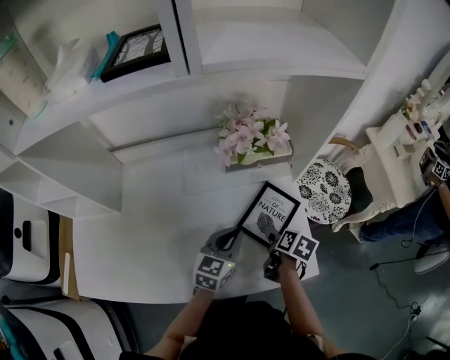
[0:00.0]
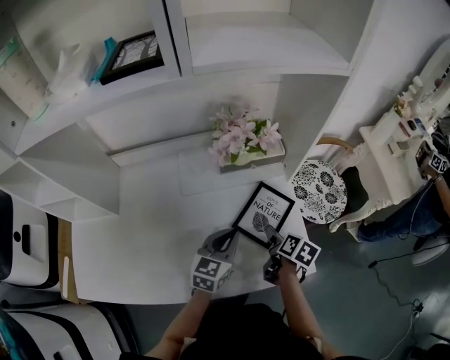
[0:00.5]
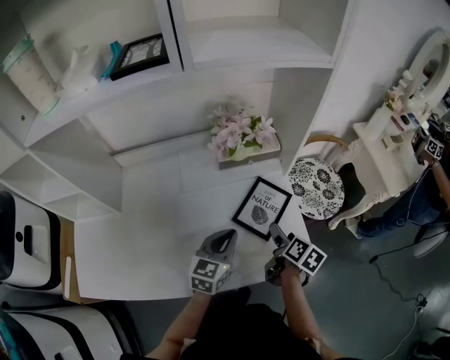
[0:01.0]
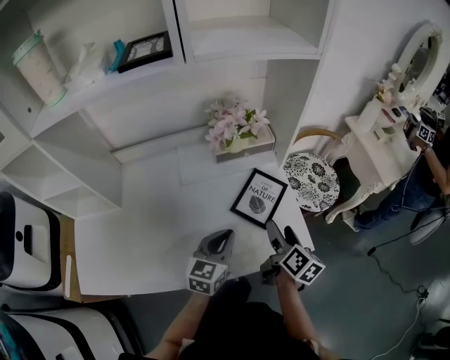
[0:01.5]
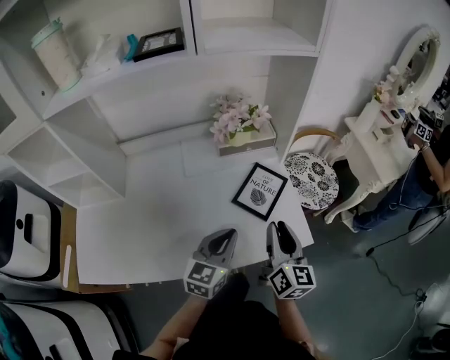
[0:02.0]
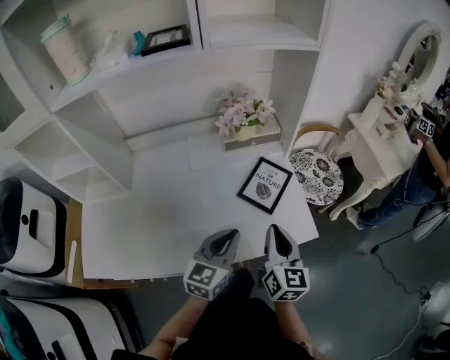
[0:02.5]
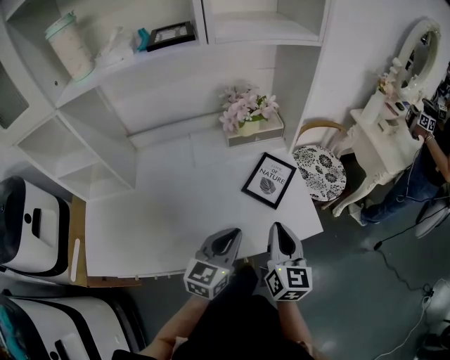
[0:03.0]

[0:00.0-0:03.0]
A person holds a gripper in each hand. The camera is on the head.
0:00.0 to 0:01.5: The left gripper shifts about 10 cm backward, while the right gripper moves upward and backward, about 15 cm, and tips its fingers upward by roughly 30 degrees.
0:01.5 to 0:03.0: The right gripper is displaced backward and upward by approximately 10 cm, turns by approximately 40 degrees, and closes its fingers. The left gripper is displaced backward by approximately 10 cm.

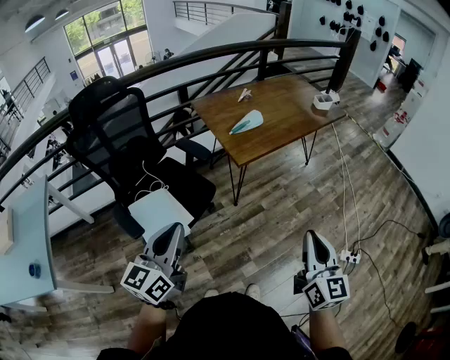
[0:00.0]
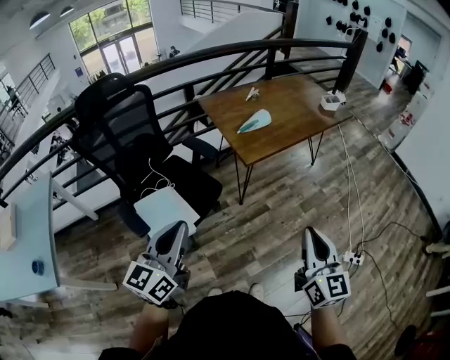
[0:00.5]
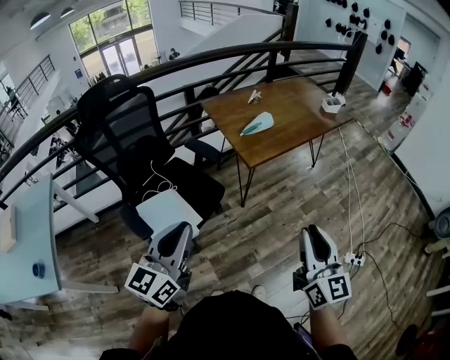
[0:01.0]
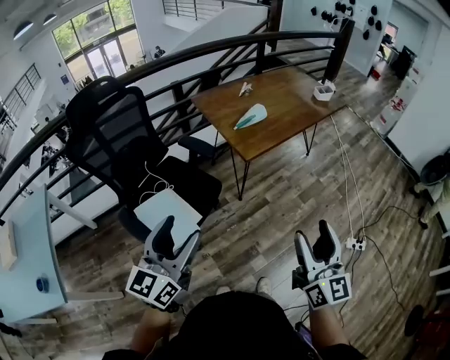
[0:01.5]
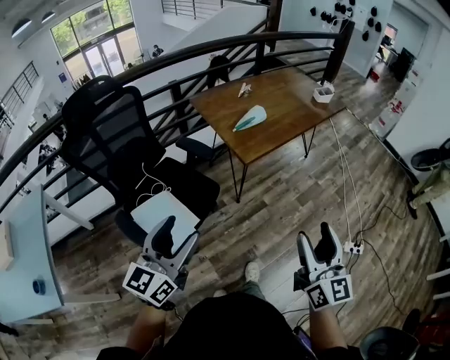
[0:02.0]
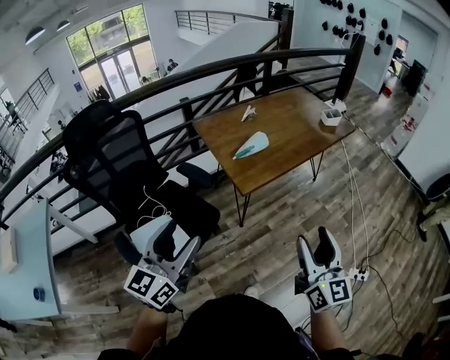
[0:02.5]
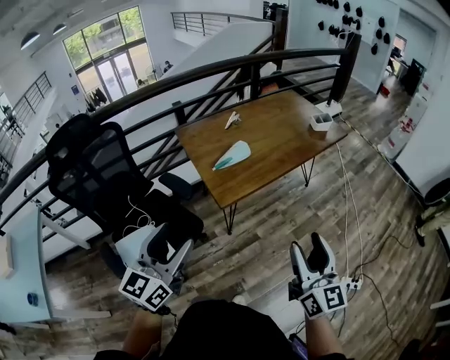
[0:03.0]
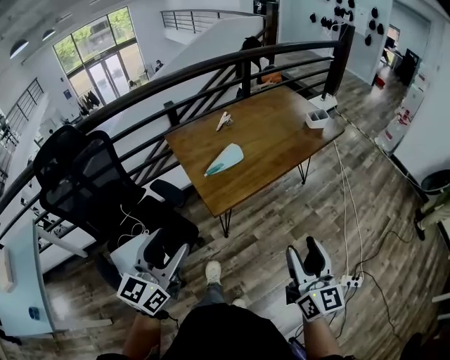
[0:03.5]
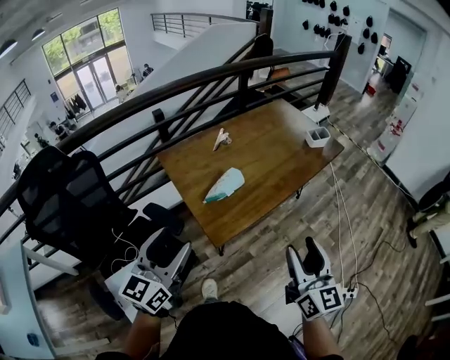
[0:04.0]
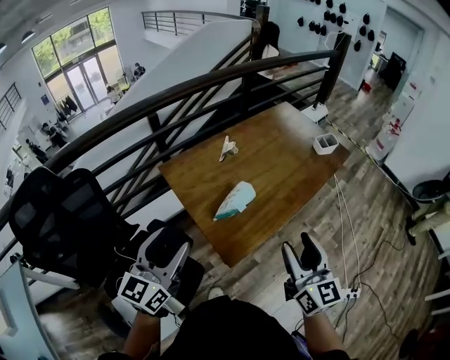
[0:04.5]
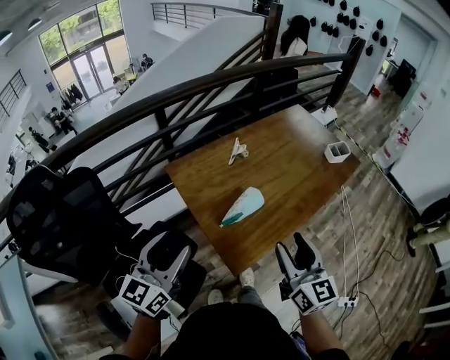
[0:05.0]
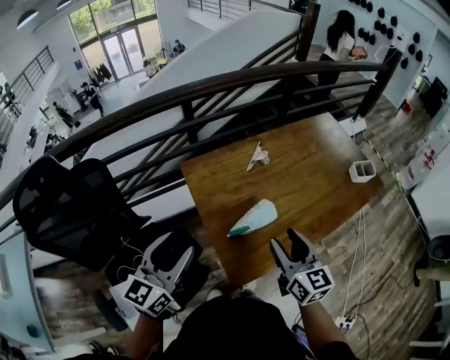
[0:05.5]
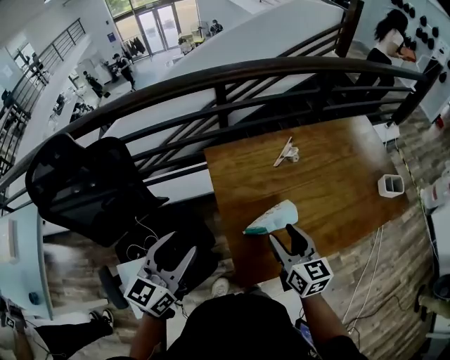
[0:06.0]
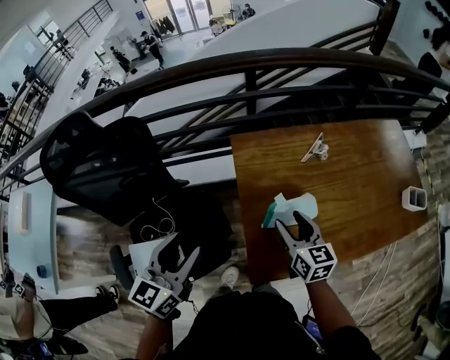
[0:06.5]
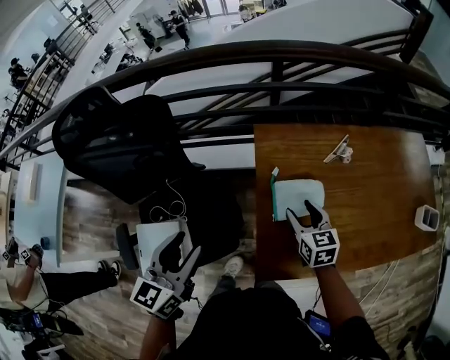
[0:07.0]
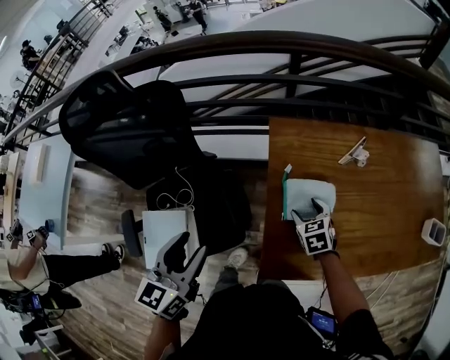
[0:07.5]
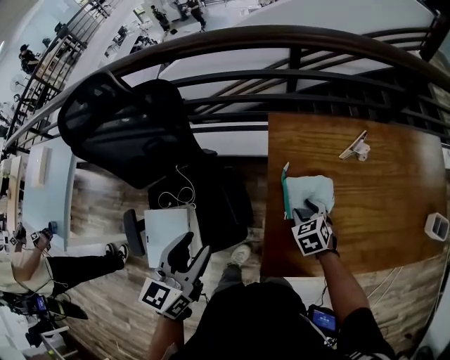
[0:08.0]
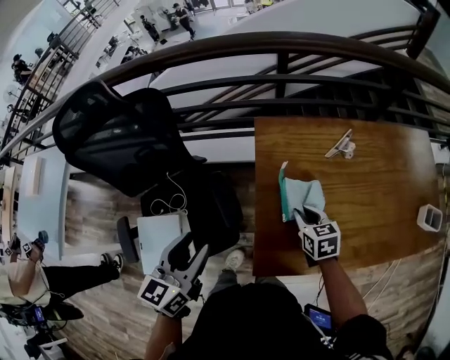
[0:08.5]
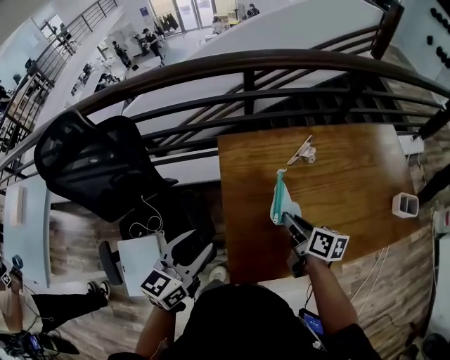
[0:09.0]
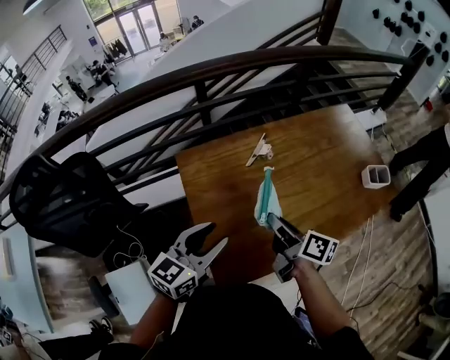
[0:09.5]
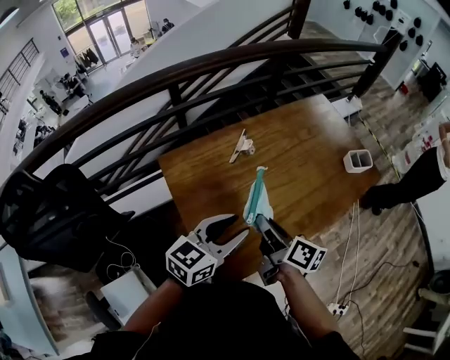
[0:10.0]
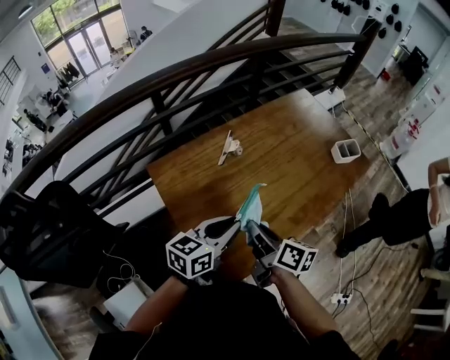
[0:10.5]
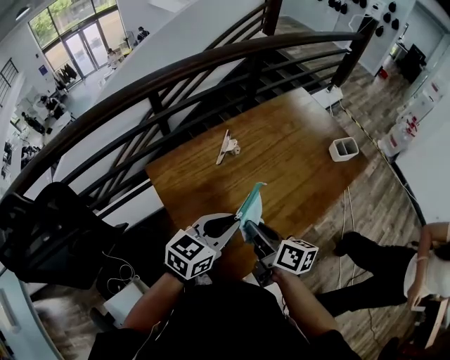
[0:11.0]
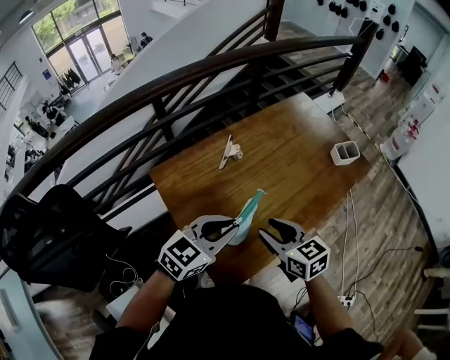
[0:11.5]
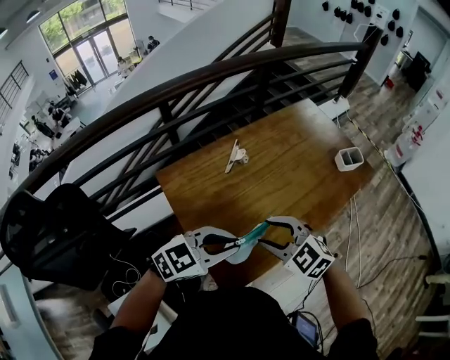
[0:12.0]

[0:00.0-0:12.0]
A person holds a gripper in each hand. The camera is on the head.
0:00.0 to 0:02.0: The left gripper opens, while the right gripper shifts some 5 cm to the left, and opens its fingers.
0:02.0 to 0:04.0: Both grippers travel together forward, about 30 cm.
0:04.0 to 0:06.0: The left gripper heads forward and to the left, covering about 20 cm, while the right gripper travels forward, to the left and downward by about 35 cm, and swivels about 40 degrees.
0:06.0 to 0:08.0: The left gripper shifts approximately 5 cm to the left, and changes its angle by roughly 30 degrees. The right gripper heads downward and forward, covering approximately 20 cm, and tips its fingers downward by some 40 degrees.
0:08.0 to 0:10.0: The right gripper goes about 20 cm upward, twists about 80 degrees clockwise, seen from behind, and closes up. Meanwhile the left gripper ends up approximately 30 cm from where it was, and swivels roughly 60 degrees.
0:10.0 to 0:12.0: The right gripper twists some 80 degrees counterclockwise, seen from behind, and opens its fingers; the left gripper rotates about 40 degrees, and closes.

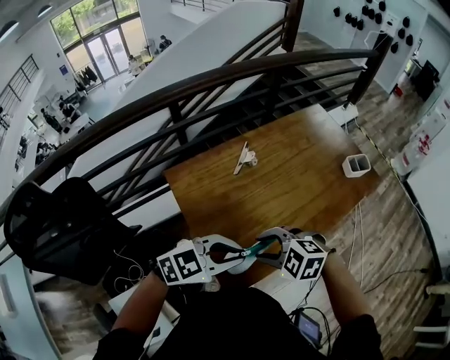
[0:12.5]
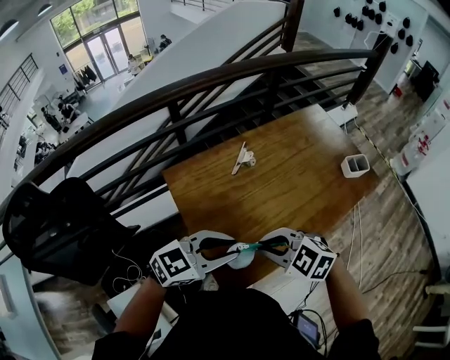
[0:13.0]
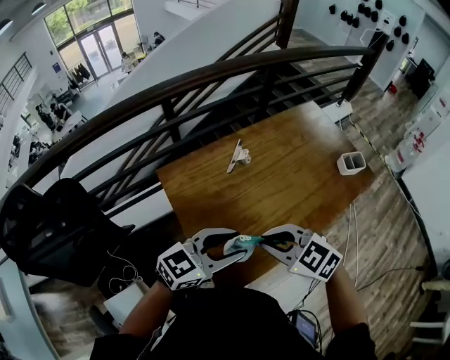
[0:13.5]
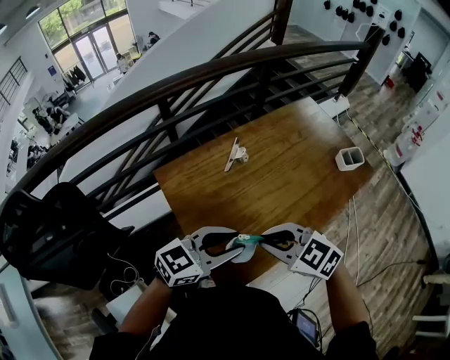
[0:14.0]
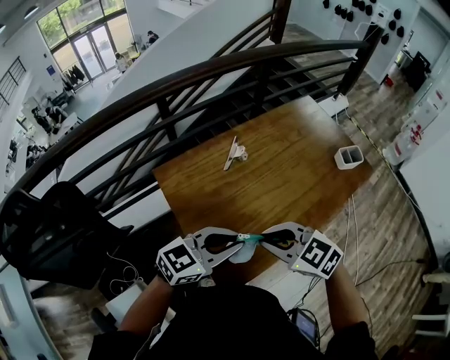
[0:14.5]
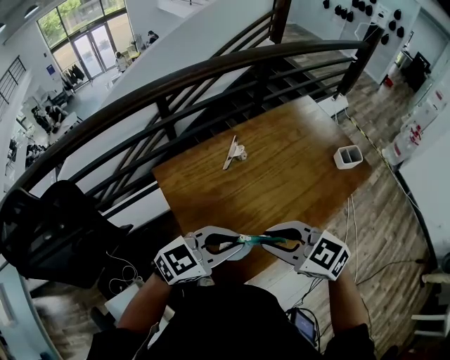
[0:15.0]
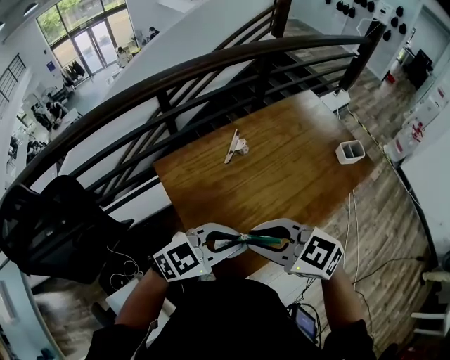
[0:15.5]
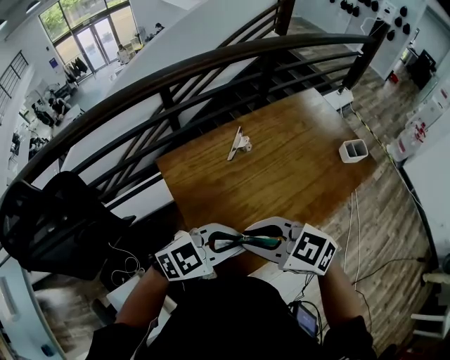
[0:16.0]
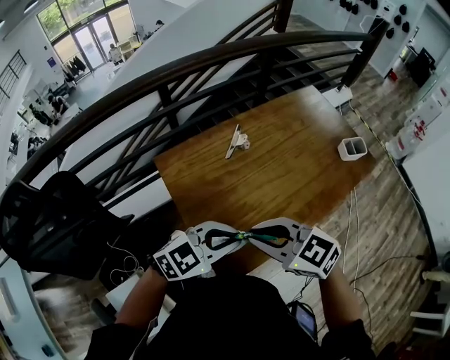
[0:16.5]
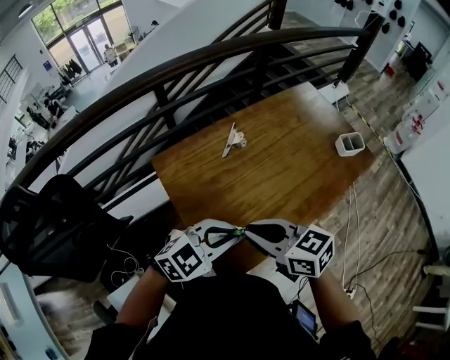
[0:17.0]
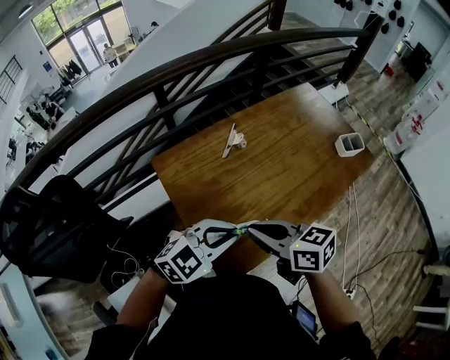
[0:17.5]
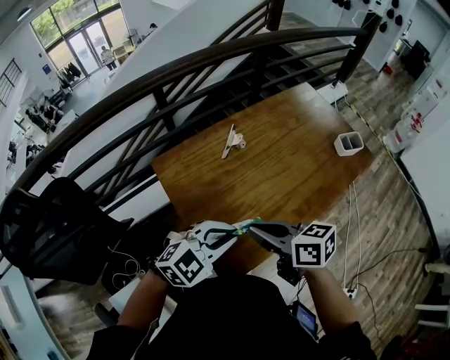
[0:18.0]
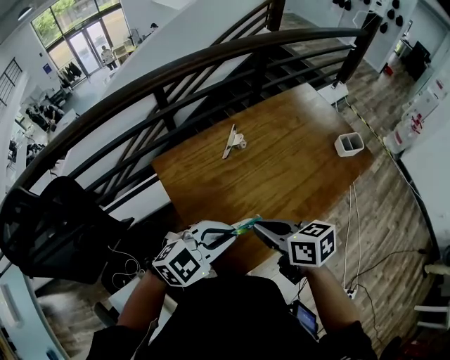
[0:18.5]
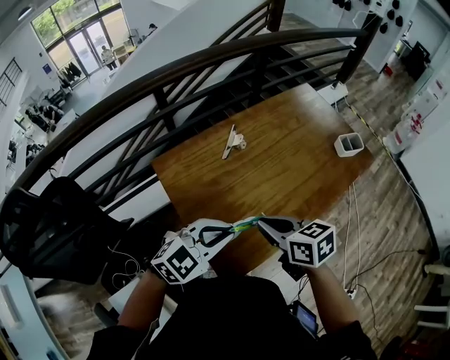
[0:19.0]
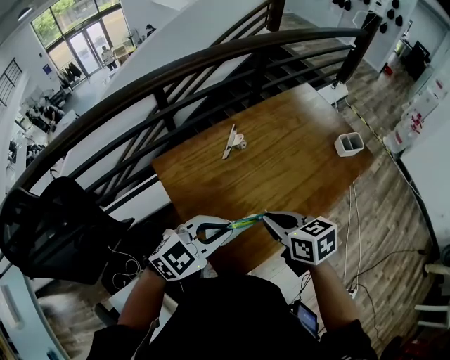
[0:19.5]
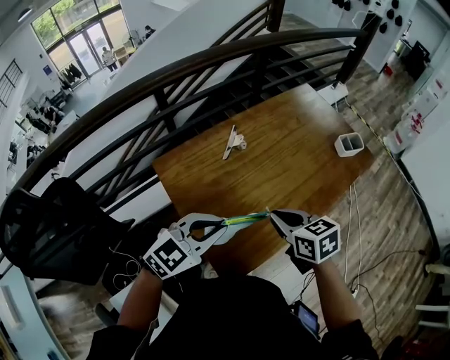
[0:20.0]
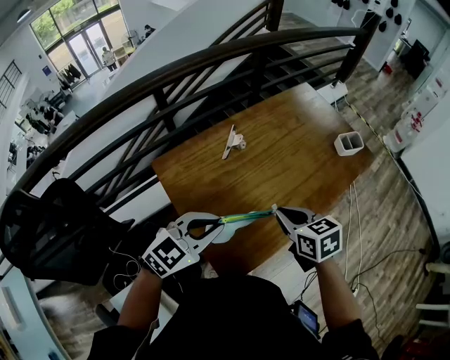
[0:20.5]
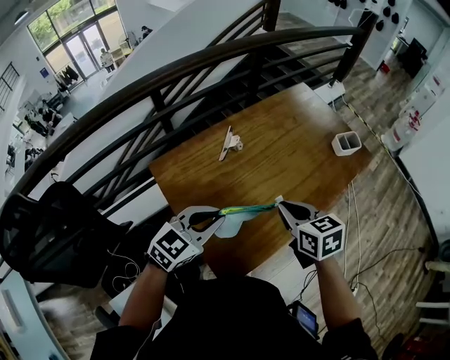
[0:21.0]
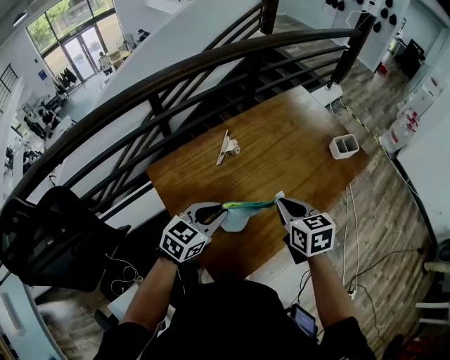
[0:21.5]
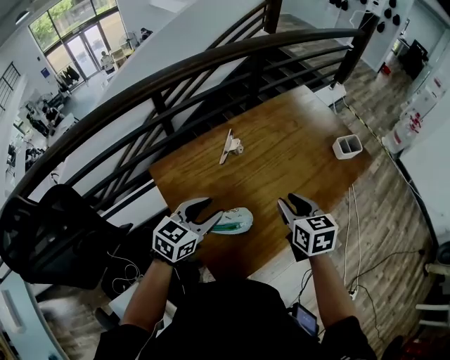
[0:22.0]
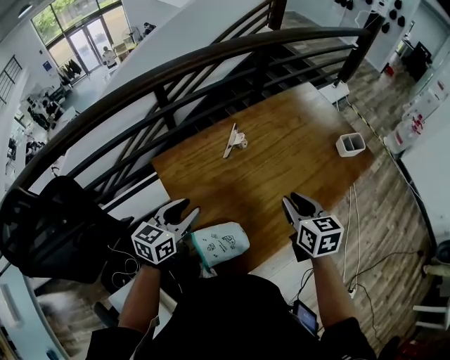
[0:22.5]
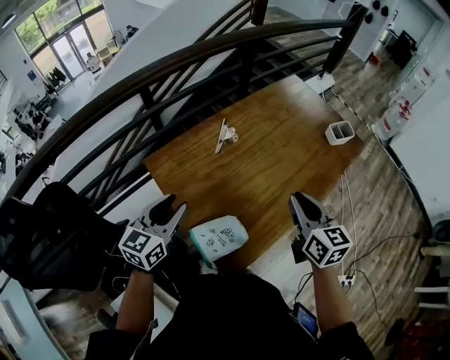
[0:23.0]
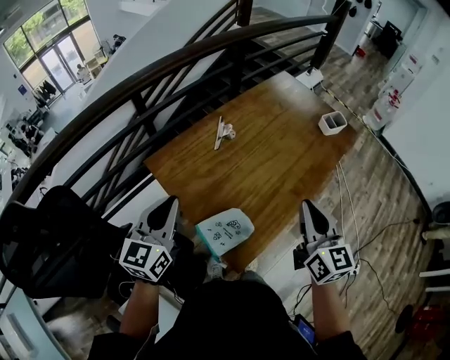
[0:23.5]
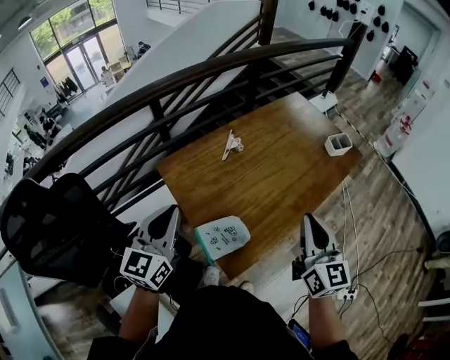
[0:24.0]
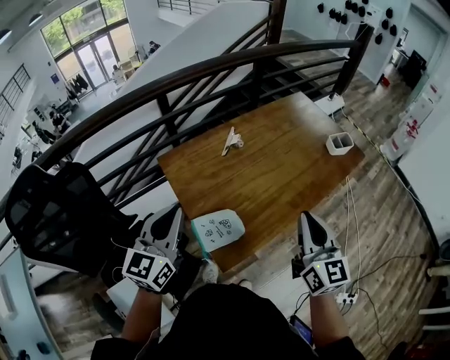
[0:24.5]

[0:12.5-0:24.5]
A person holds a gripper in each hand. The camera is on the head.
0:12.5 to 0:14.5: The left gripper turns by roughly 20 degrees, and opens and closes again. The right gripper is displaced upward by about 5 cm, swivels some 30 degrees, and closes up.
0:16.5 to 0:18.5: The right gripper moves approximately 5 cm, and turns by some 40 degrees.
0:18.5 to 0:20.5: The right gripper travels to the right by roughly 5 cm, and swivels roughly 20 degrees.
0:20.5 to 0:22.5: The right gripper ends up roughly 5 cm from where it was. The left gripper travels to the left and downward by some 10 cm, turns by about 40 degrees, and opens.
0:22.5 to 0:24.5: The right gripper travels backward and upward by about 20 cm, rotates approximately 30 degrees, and closes, while the left gripper moves upward and backward, about 20 cm, swivels some 30 degrees, and closes.
